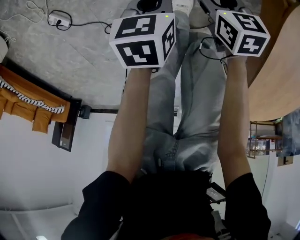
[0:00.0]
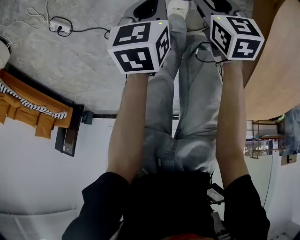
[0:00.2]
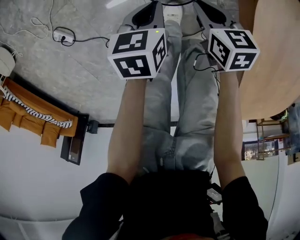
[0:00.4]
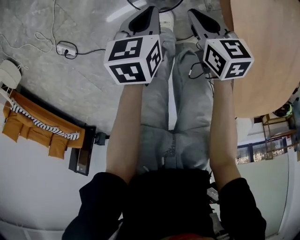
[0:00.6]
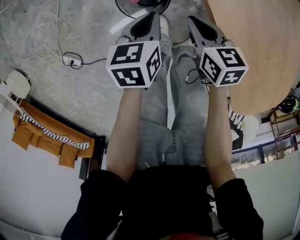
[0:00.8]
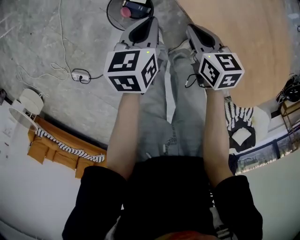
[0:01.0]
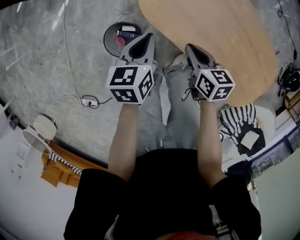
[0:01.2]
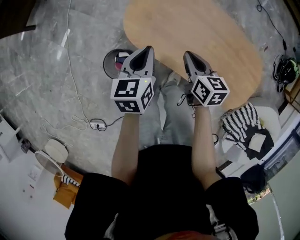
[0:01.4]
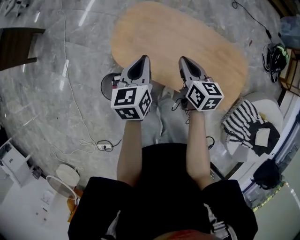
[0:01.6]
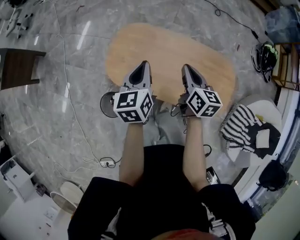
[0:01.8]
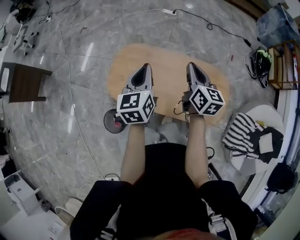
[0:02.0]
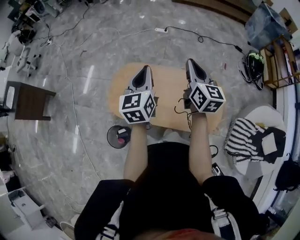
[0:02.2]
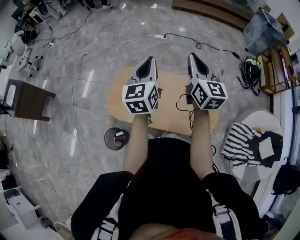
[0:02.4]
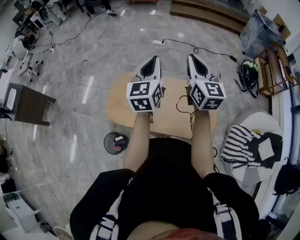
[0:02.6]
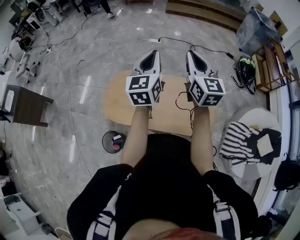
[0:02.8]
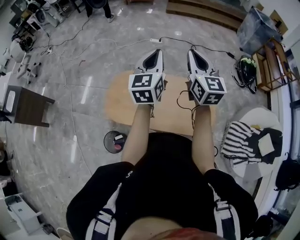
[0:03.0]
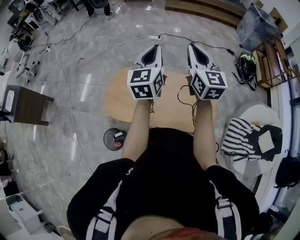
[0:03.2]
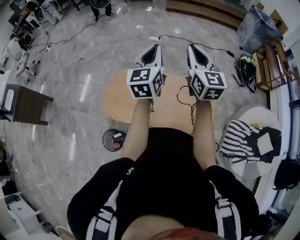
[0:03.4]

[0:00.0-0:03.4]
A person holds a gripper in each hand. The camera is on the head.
0:00.0 to 0:01.6: The two grippers travel together, roughly 50 cm. Both grippers move upward, approximately 50 cm. The left gripper angles its fingers upward, by about 30 degrees; the right gripper changes its angle by approximately 80 degrees, and closes up.
0:01.6 to 0:03.4: The grippers both shift upward and to the right by some 40 cm. The left gripper changes its angle by roughly 30 degrees. Meanwhile the right gripper turns by some 40 degrees.

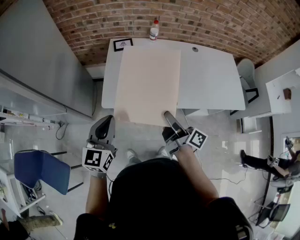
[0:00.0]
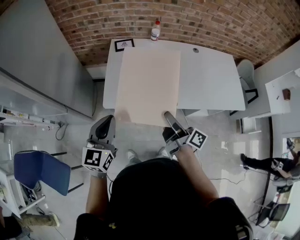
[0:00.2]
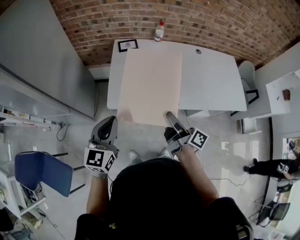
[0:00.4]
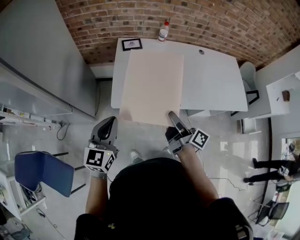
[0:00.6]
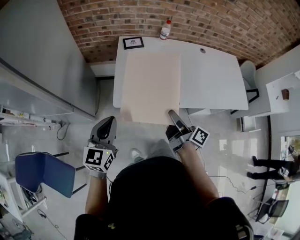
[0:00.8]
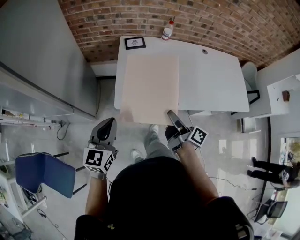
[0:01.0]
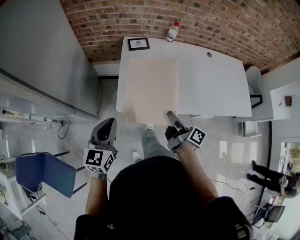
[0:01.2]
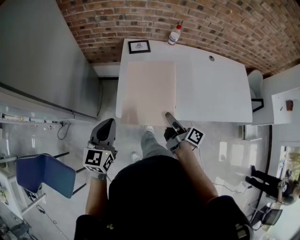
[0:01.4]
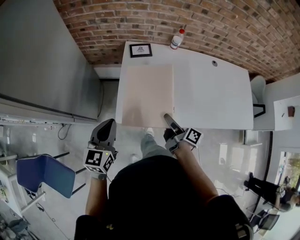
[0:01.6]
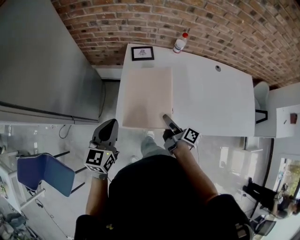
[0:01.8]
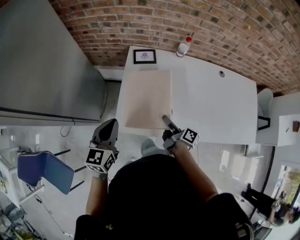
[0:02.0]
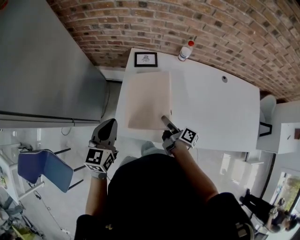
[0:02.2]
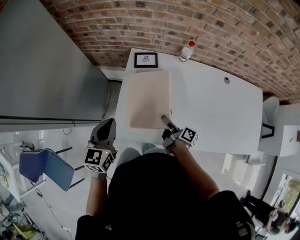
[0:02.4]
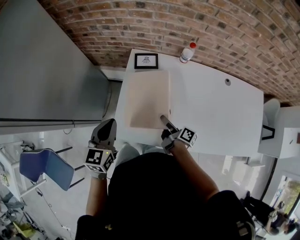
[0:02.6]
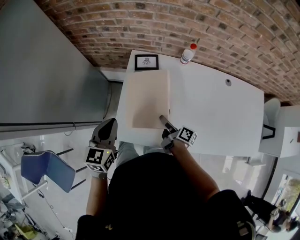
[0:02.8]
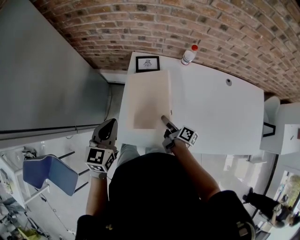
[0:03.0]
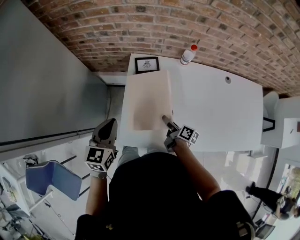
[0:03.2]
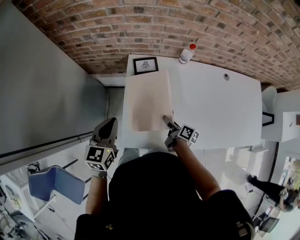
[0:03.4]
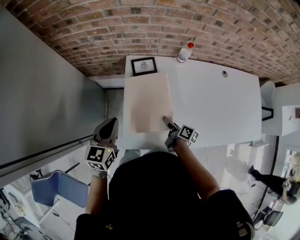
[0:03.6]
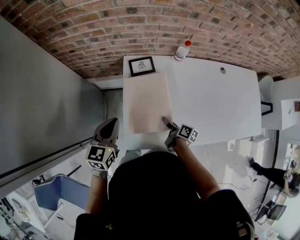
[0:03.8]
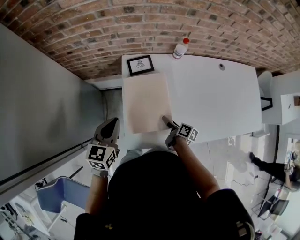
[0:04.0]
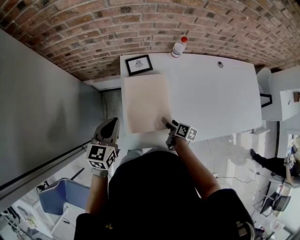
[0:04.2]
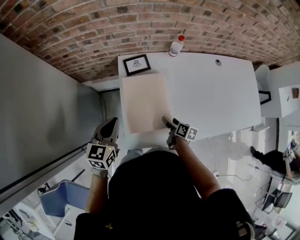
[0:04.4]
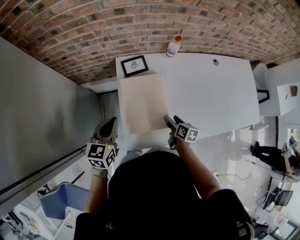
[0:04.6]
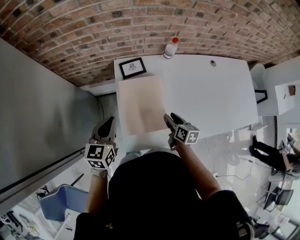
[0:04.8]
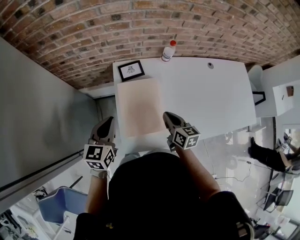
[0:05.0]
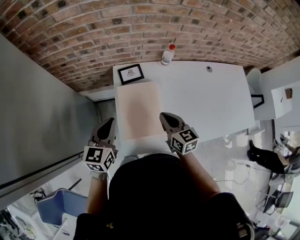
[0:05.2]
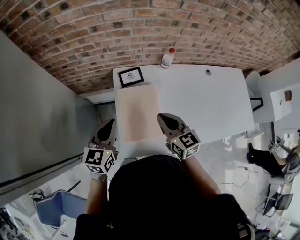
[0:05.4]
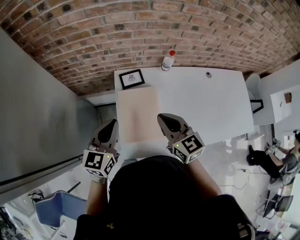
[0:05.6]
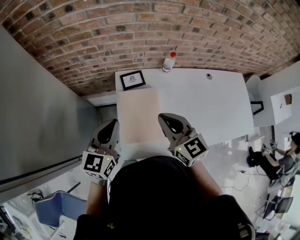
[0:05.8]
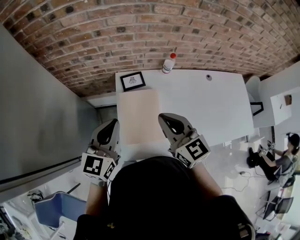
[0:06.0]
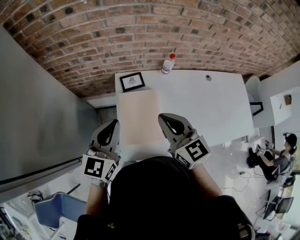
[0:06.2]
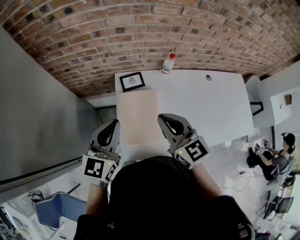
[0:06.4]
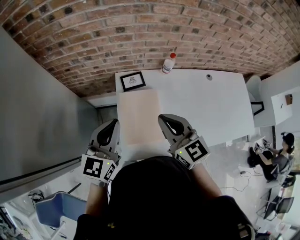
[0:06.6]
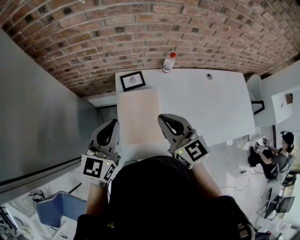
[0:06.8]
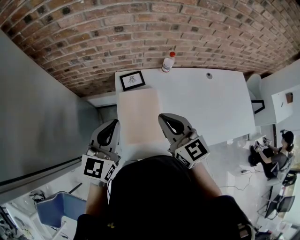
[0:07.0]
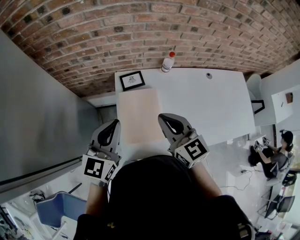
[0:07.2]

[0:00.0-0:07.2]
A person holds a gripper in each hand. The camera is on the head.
0:00.0 to 0:01.4: The left gripper is displaced to the left, forward and downward by roughly 15 cm. The right gripper shifts about 15 cm downward, forward and to the left.
0:01.4 to 0:02.8: The right gripper goes roughly 20 cm forward and downward. Meanwhile the left gripper goes roughly 20 cm forward and to the right.
0:02.8 to 0:04.4: The right gripper goes roughly 5 cm downward, and changes its angle by approximately 30 degrees, while the left gripper moves forward, roughly 5 cm.
0:04.4 to 0:05.8: The left gripper moves upward, roughly 10 cm; the right gripper shifts roughly 35 cm upward, rotates around the line of its fingers by about 60 degrees, counterclockwise from behind, and closes its fingers.
0:05.8 to 0:07.2: There are only small adjustments of the grippers.

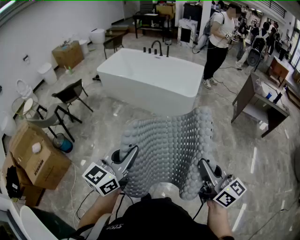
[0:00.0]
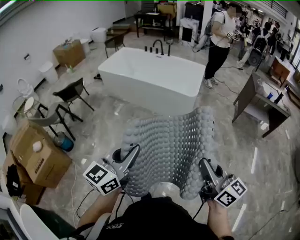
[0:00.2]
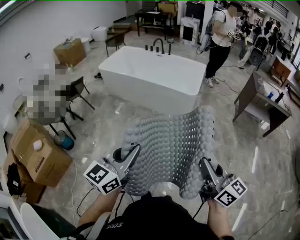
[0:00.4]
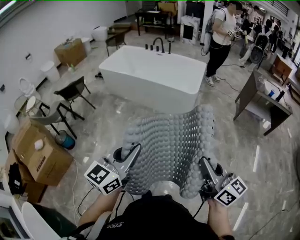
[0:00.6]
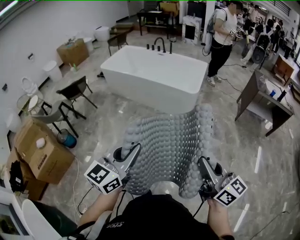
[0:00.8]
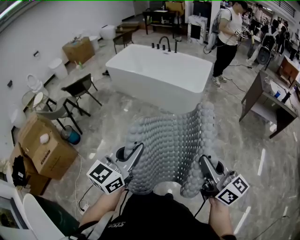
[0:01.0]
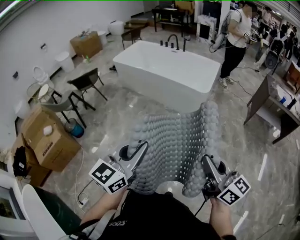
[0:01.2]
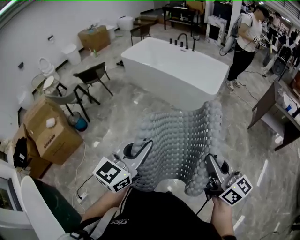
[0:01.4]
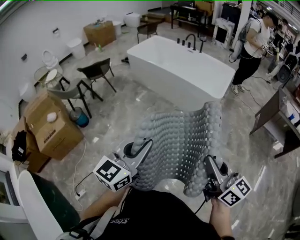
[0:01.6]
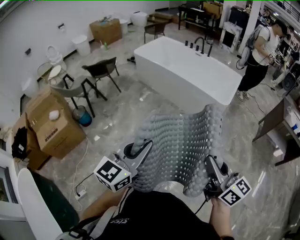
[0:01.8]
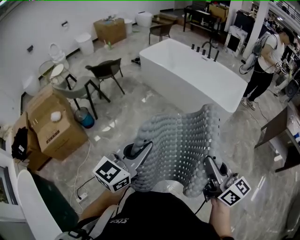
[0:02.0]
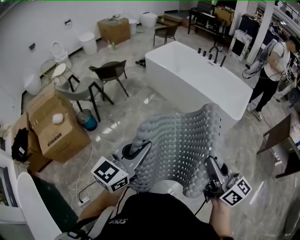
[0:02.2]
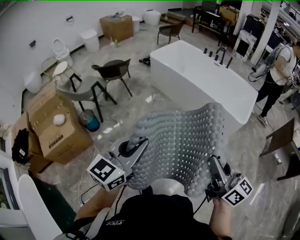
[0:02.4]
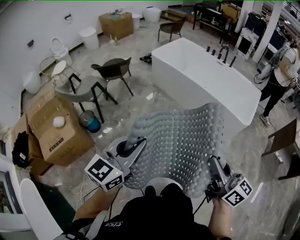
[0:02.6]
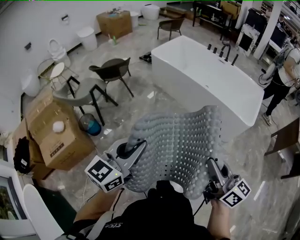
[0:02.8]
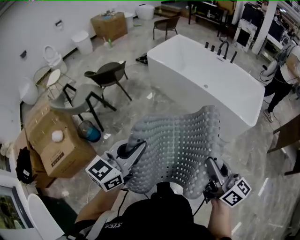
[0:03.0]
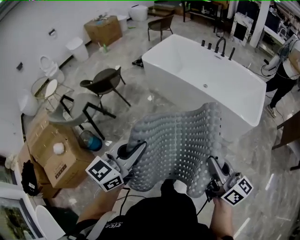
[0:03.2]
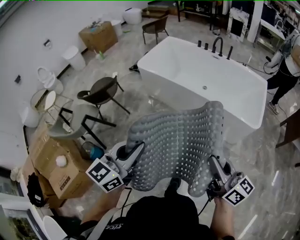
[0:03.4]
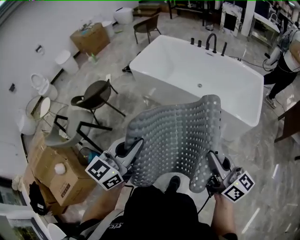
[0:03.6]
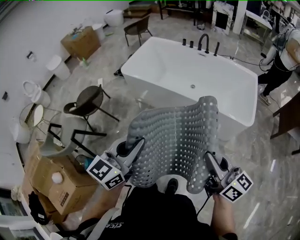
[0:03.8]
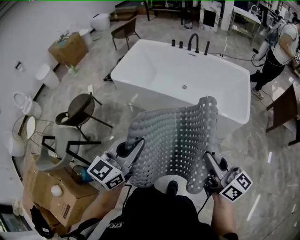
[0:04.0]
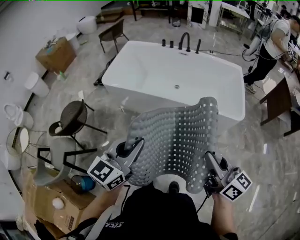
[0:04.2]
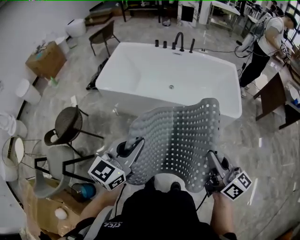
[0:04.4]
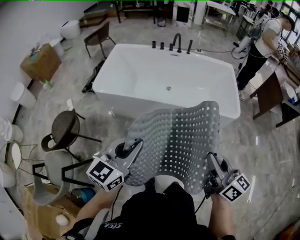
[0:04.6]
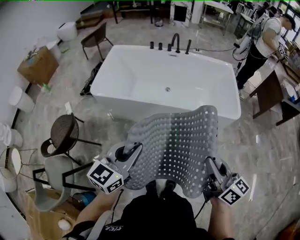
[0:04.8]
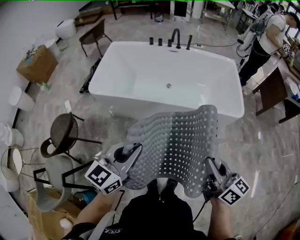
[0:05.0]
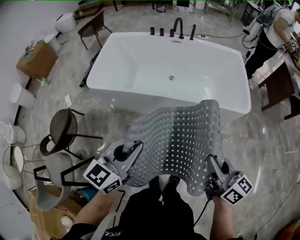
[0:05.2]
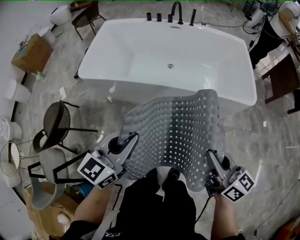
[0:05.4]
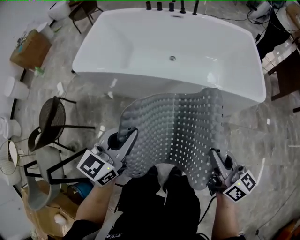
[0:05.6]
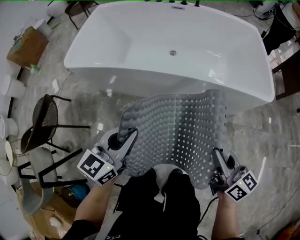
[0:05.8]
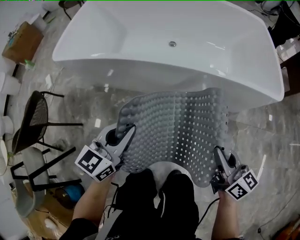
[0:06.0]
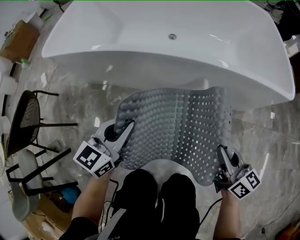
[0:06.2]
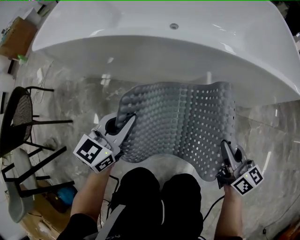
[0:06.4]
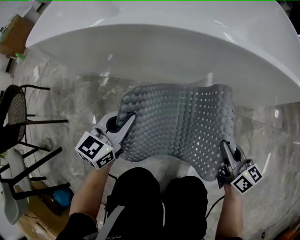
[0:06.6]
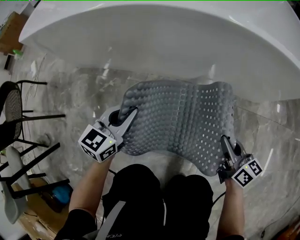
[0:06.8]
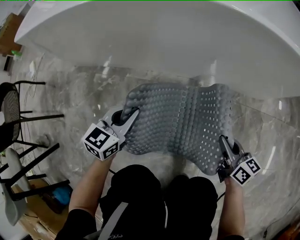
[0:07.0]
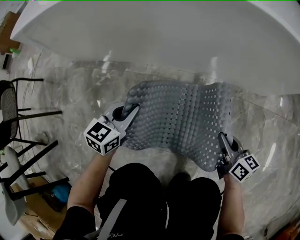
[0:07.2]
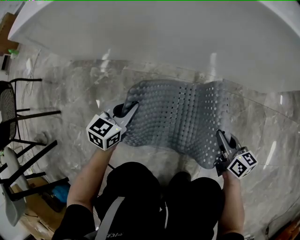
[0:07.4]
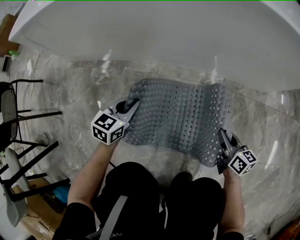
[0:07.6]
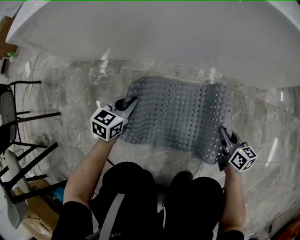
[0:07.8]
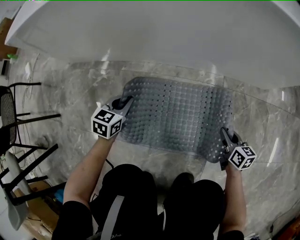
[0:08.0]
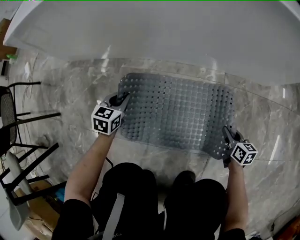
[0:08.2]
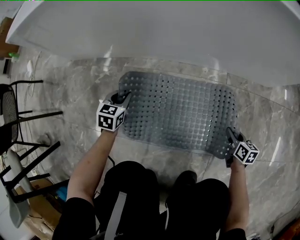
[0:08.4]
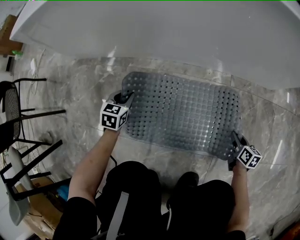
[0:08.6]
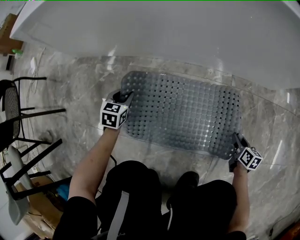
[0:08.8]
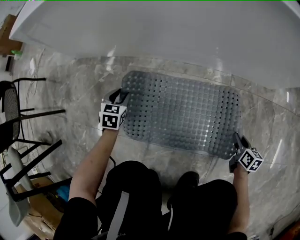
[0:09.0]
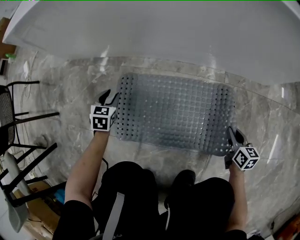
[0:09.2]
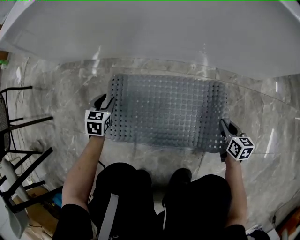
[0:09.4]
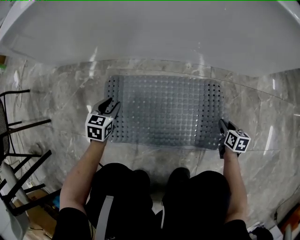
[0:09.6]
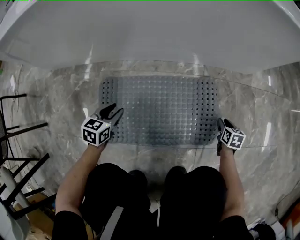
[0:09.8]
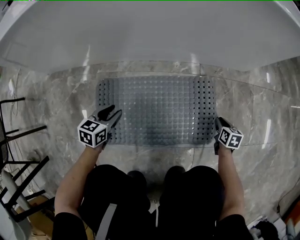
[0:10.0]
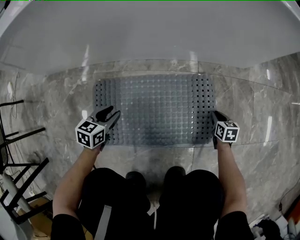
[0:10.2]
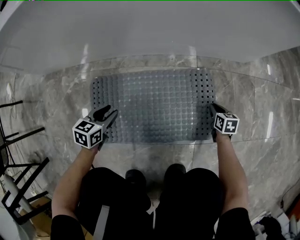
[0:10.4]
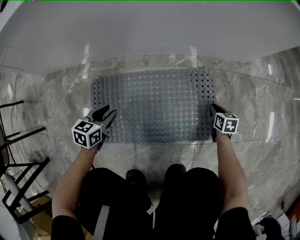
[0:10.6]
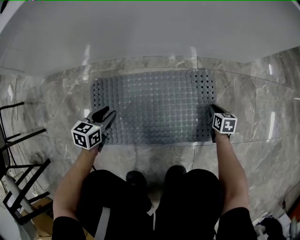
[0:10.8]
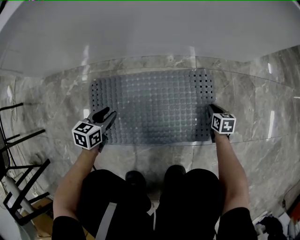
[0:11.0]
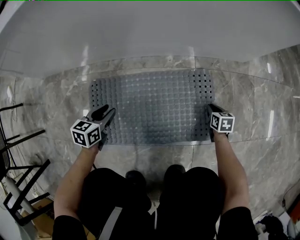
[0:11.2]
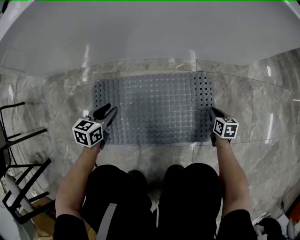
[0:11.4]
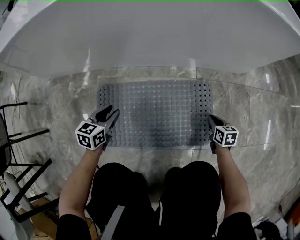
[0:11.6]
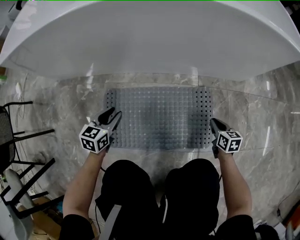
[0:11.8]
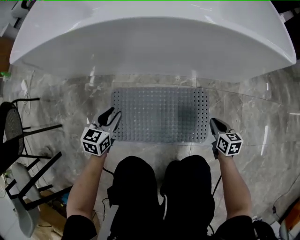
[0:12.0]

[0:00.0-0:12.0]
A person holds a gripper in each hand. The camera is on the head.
0:01.6 to 0:03.0: The two grippers travel together, forward and to the left, about 40 cm.
0:03.0 to 0:04.4: The right gripper changes place by about 30 cm, and swivels some 30 degrees, while the left gripper ends up some 40 cm from where it was, and rotates some 30 degrees.
0:04.4 to 0:06.0: Both grippers travel together downward, about 40 cm.
0:06.0 to 0:07.6: Both grippers move downward, some 40 cm.
0:07.6 to 0:09.0: The right gripper moves downward and to the right, roughly 15 cm. Meanwhile the left gripper goes roughly 15 cm to the left and downward, changes its angle by approximately 30 degrees, and opens.
0:09.0 to 0:10.4: The right gripper heads downward, covering about 10 cm. Meanwhile the left gripper ends up roughly 15 cm from where it was, and turns by some 30 degrees.
0:10.4 to 0:12.0: Both grippers move upward, about 20 cm.

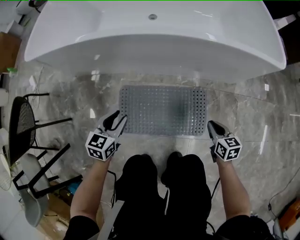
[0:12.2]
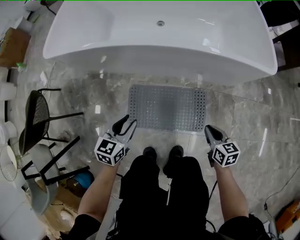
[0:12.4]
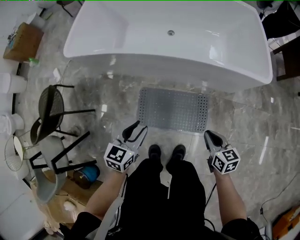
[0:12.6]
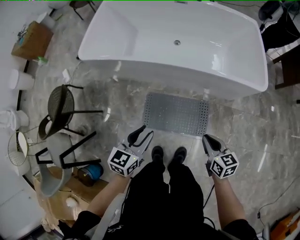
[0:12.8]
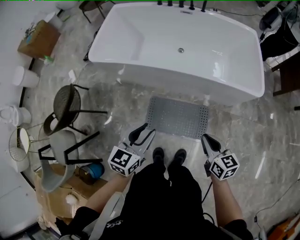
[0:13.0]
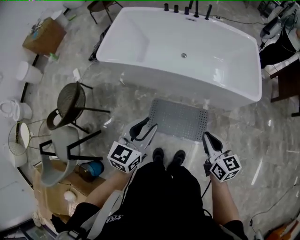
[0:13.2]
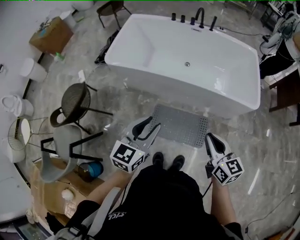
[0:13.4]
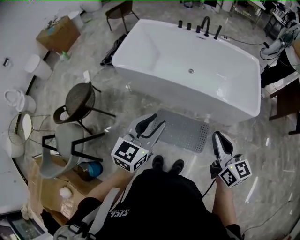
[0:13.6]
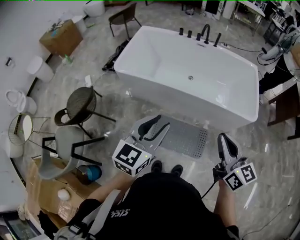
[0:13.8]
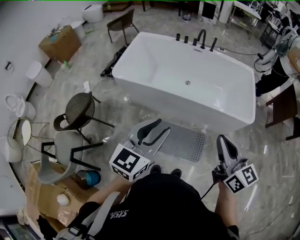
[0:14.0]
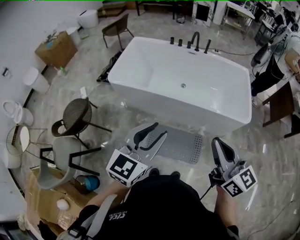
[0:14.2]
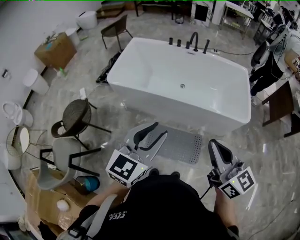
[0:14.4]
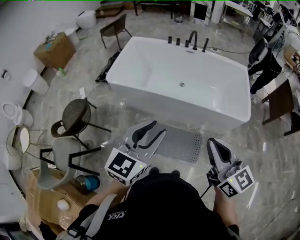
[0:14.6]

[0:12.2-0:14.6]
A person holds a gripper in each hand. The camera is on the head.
0:12.2 to 0:13.4: Both grippers move upward, about 60 cm. The left gripper swivels about 20 degrees. The right gripper changes its angle by some 30 degrees.
0:13.4 to 0:14.6: The two grippers go roughly 15 cm upward.
